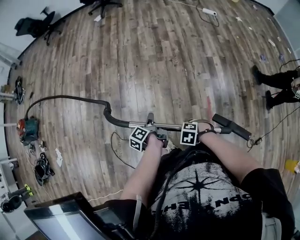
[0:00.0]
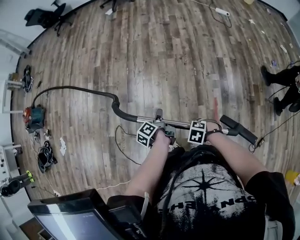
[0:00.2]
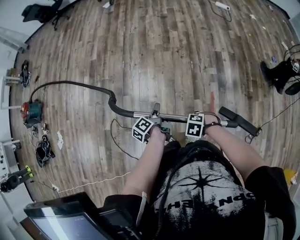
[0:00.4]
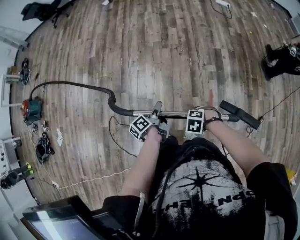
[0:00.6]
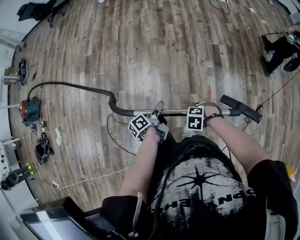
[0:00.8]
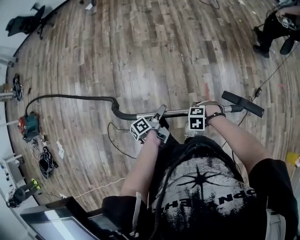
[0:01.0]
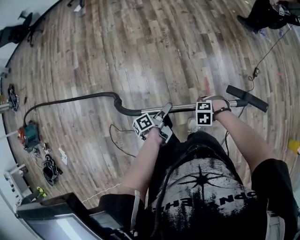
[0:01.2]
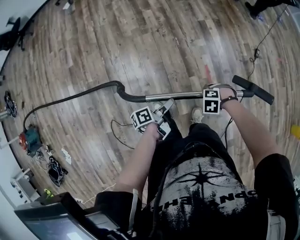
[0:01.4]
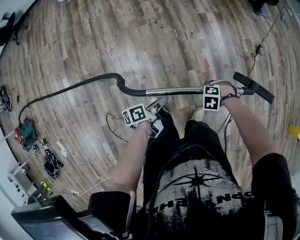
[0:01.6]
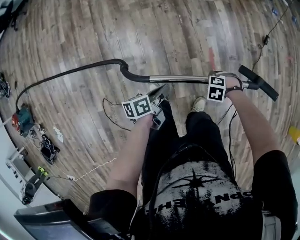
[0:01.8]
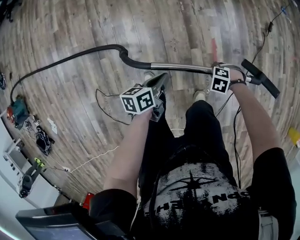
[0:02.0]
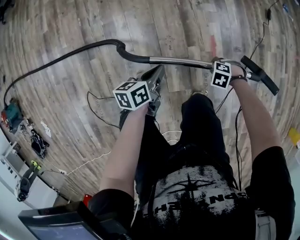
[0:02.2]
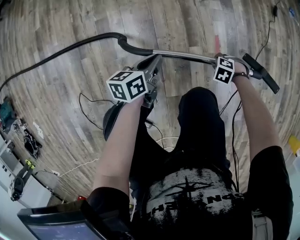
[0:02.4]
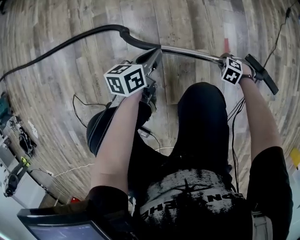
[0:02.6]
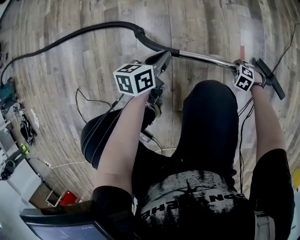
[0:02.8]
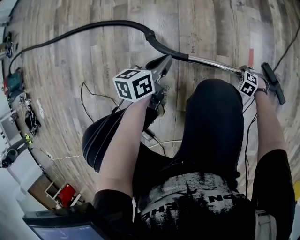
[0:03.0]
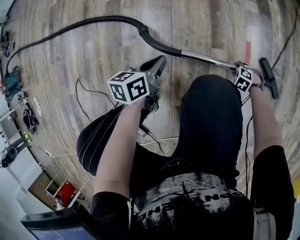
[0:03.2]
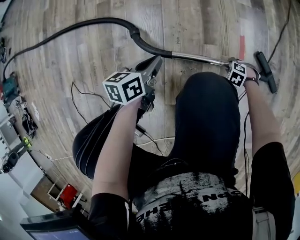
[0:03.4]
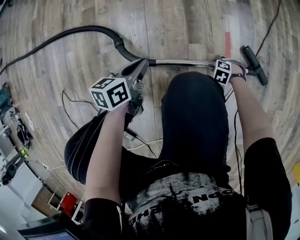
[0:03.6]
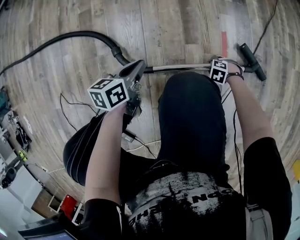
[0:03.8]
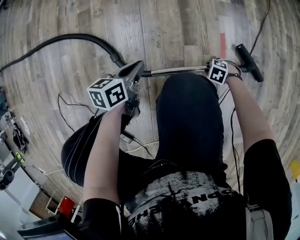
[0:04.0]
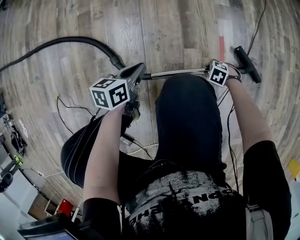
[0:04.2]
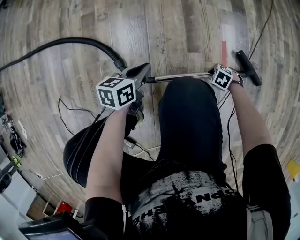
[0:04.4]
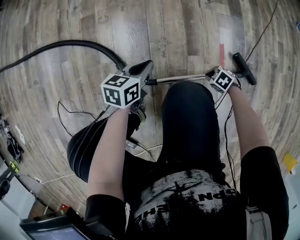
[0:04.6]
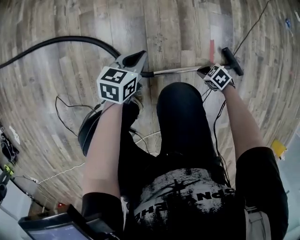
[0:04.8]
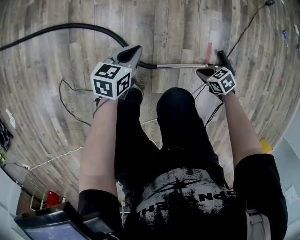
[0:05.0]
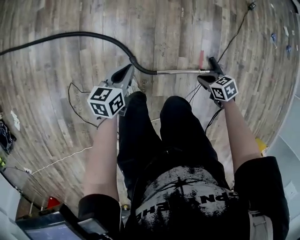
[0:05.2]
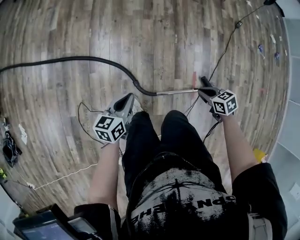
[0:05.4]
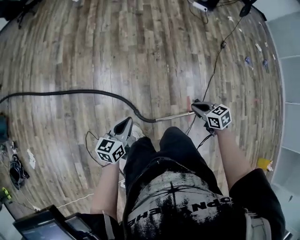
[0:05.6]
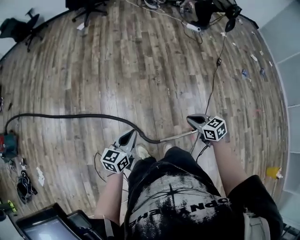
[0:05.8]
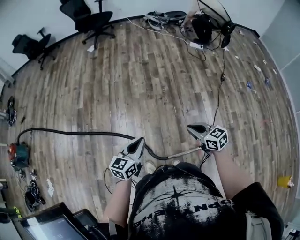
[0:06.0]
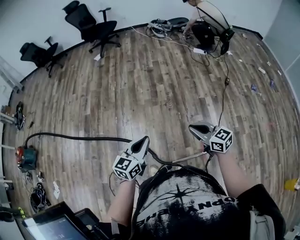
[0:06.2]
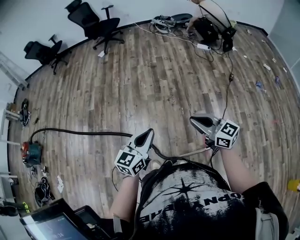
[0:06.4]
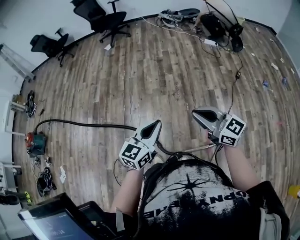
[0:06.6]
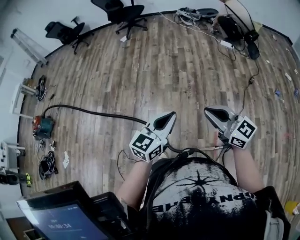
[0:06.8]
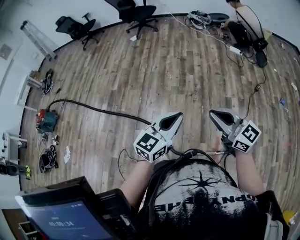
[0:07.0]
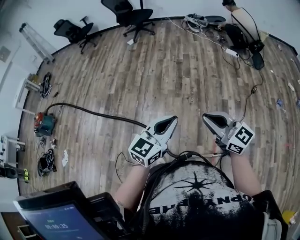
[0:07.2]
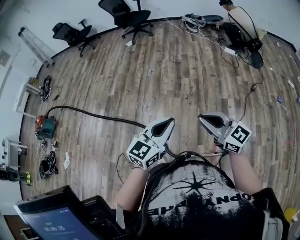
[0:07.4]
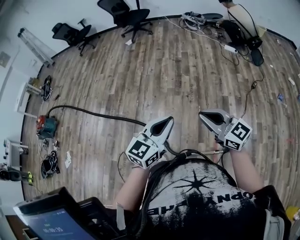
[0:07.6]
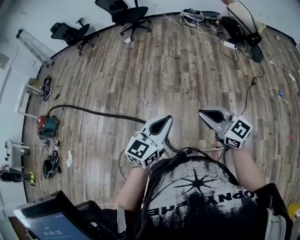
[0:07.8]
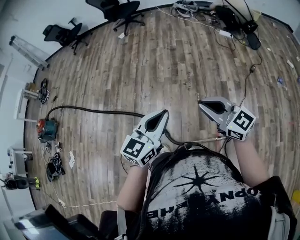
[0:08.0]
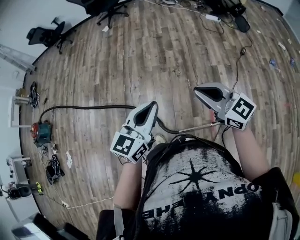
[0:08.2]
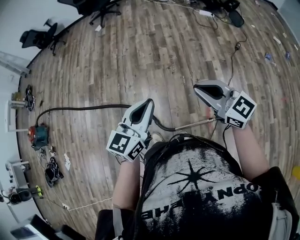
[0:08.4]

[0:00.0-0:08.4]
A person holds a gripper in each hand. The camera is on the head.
0:00.0 to 0:01.4: The left gripper ends up approximately 15 cm from where it was, and rotates some 50 degrees. Meanwhile the right gripper ends up some 20 cm from where it was.
0:01.4 to 0:02.8: Both grippers move downward, roughly 50 cm. The left gripper twists about 40 degrees clockwise, seen from behind, and closes up.
0:02.8 to 0:04.2: The right gripper changes place by roughly 10 cm; the left gripper ends up approximately 10 cm from where it was.
0:04.2 to 0:05.6: The grippers both shift upward by roughly 60 cm. The left gripper rotates about 20 degrees. Meanwhile the right gripper rotates some 60 degrees, and closes.
0:05.6 to 0:07.0: The right gripper goes approximately 30 cm upward, and tilts its fingers roughly 50 degrees upward, while the left gripper travels upward and to the right by some 35 cm, and turns by roughly 30 degrees.
0:07.0 to 0:08.4: The right gripper moves roughly 5 cm.

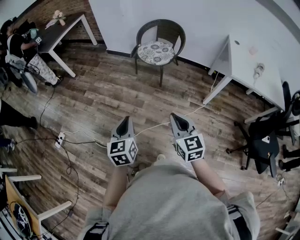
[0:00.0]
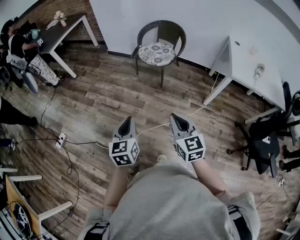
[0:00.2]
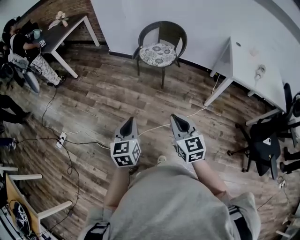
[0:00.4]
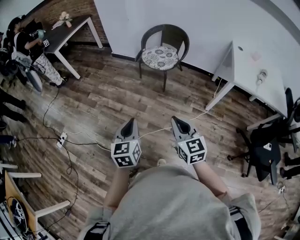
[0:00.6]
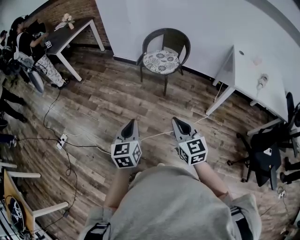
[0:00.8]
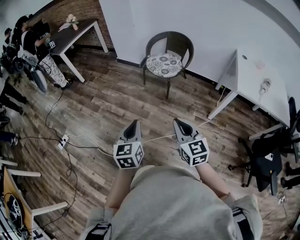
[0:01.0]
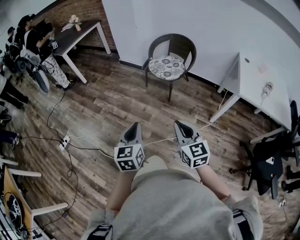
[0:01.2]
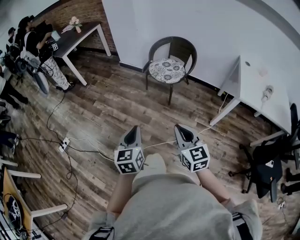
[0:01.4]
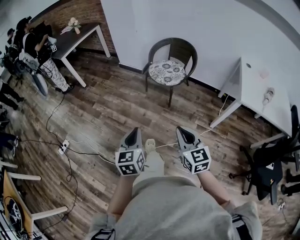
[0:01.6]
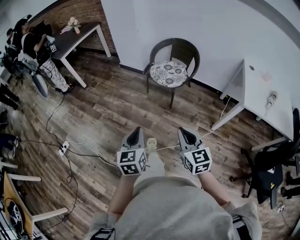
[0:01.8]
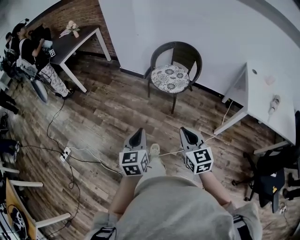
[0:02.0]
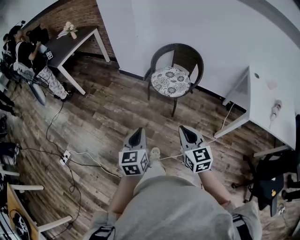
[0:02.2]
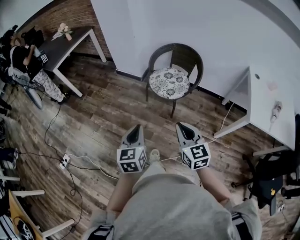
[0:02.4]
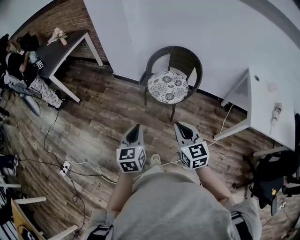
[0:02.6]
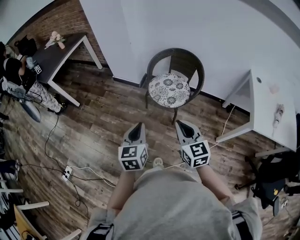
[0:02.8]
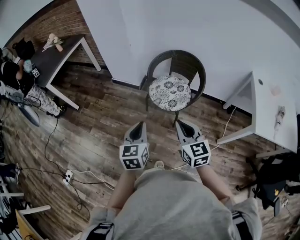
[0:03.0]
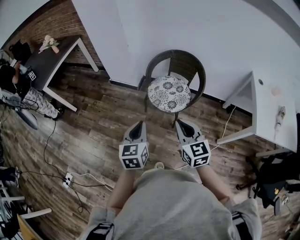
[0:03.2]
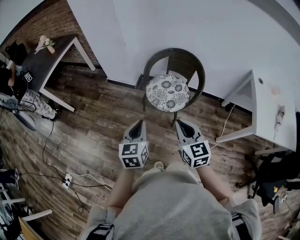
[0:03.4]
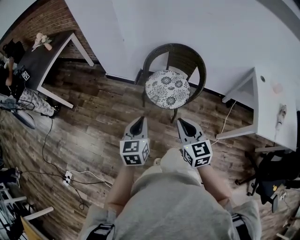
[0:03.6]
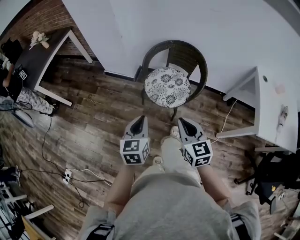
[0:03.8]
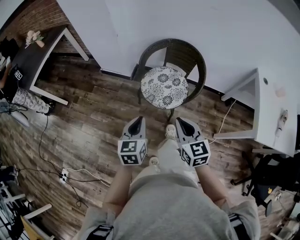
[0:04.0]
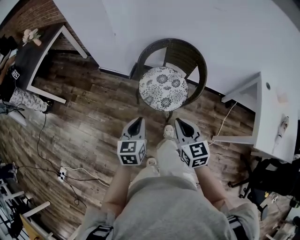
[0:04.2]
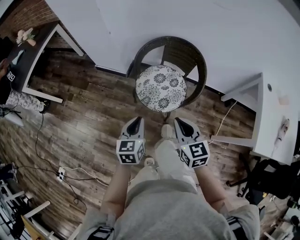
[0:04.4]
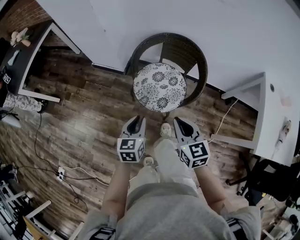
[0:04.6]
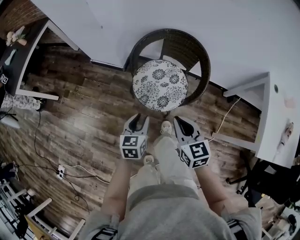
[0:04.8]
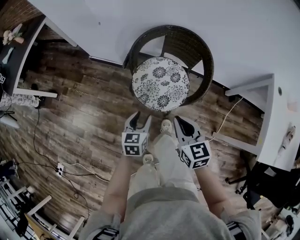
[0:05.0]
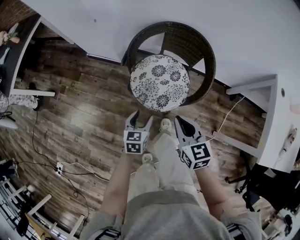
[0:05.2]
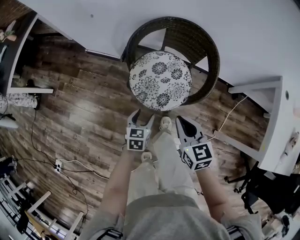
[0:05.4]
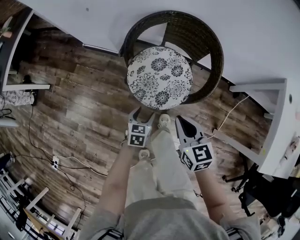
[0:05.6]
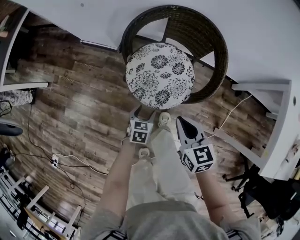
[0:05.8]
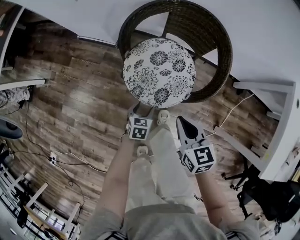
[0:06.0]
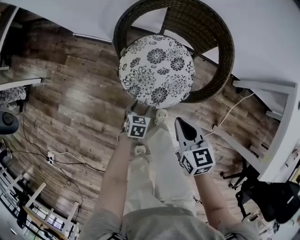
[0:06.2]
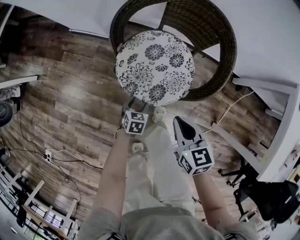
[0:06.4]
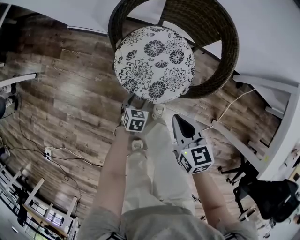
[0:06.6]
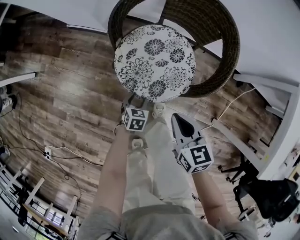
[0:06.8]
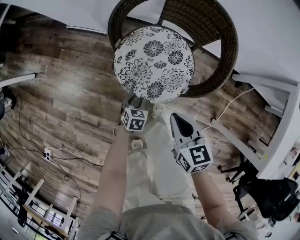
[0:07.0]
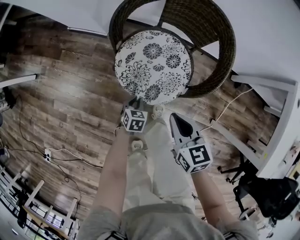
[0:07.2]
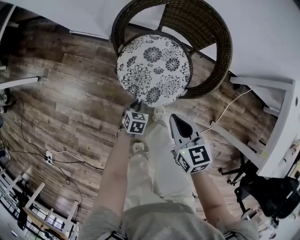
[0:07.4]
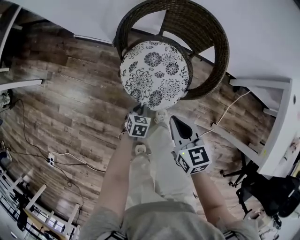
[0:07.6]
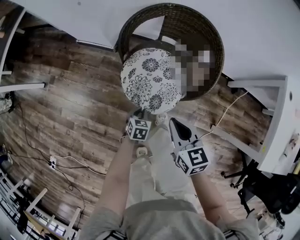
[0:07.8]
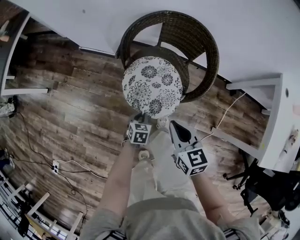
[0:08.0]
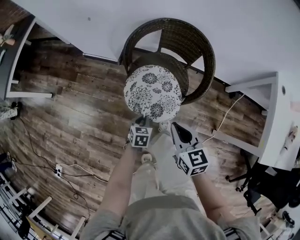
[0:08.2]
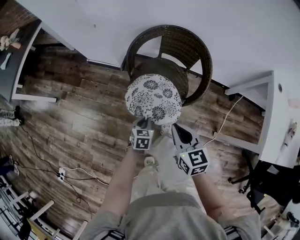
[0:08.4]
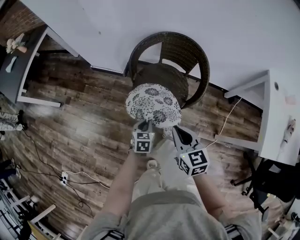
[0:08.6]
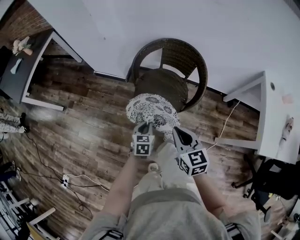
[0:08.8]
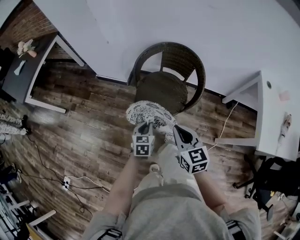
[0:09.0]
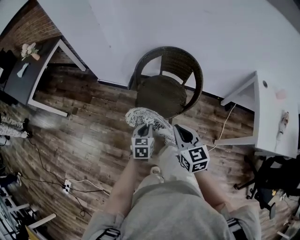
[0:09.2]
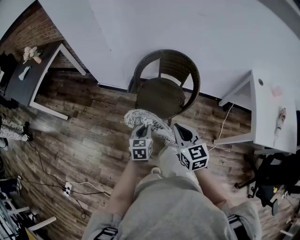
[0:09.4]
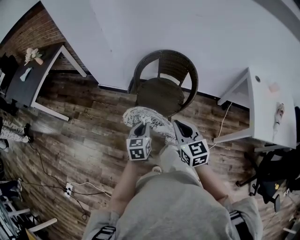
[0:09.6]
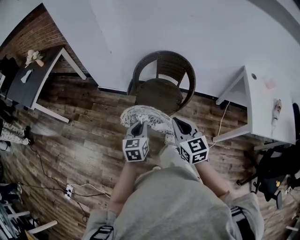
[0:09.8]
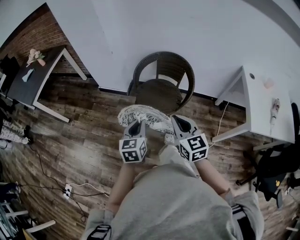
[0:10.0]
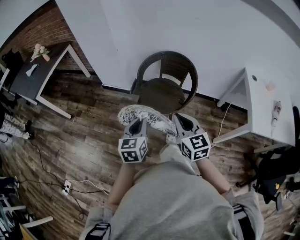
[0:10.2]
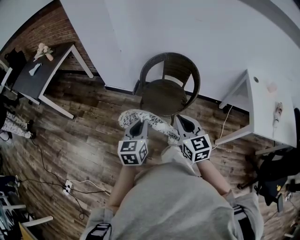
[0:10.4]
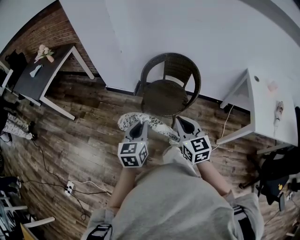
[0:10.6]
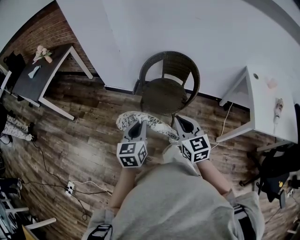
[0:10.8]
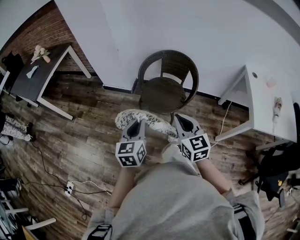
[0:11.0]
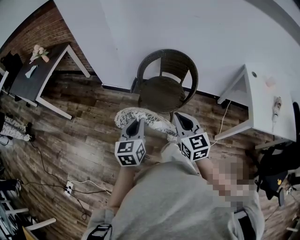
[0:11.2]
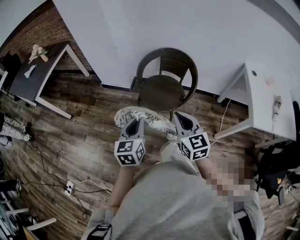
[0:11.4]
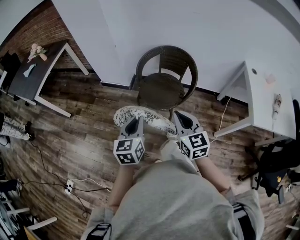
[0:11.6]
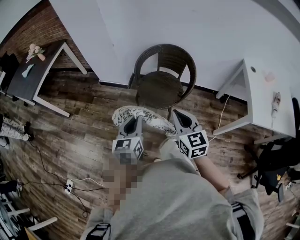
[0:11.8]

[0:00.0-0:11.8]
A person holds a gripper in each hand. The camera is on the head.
0:00.0 to 0:01.4: The grippers stay close to where they were, moving slightly.
0:01.4 to 0:03.0: The grippers both shift forward by some 40 cm.
0:03.0 to 0:04.4: The two grippers go some 20 cm forward and downward.
0:04.4 to 0:06.0: The right gripper is displaced downward and forward by about 25 cm, while the left gripper travels downward by roughly 35 cm, swivels about 30 degrees, and opens its fingers.
0:06.0 to 0:07.4: The left gripper closes.
0:07.4 to 0:08.8: The right gripper travels upward and backward by about 20 cm. Meanwhile the left gripper goes about 25 cm upward.
0:08.8 to 0:10.4: The right gripper heads backward and upward, covering some 20 cm, while the left gripper is displaced upward and backward by approximately 30 cm, and swivels about 30 degrees.
0:10.4 to 0:11.8: Both grippers stay about where they are.

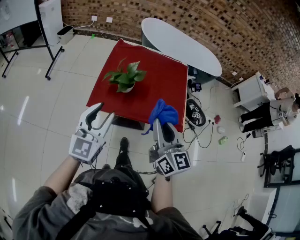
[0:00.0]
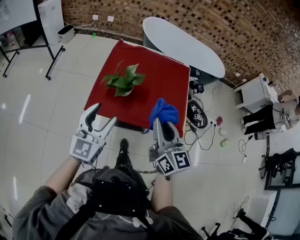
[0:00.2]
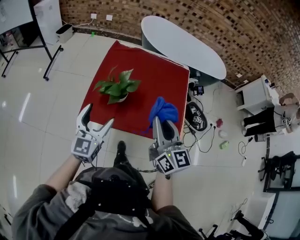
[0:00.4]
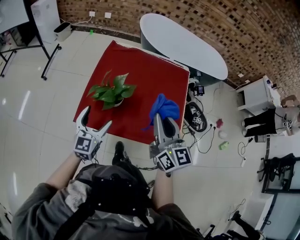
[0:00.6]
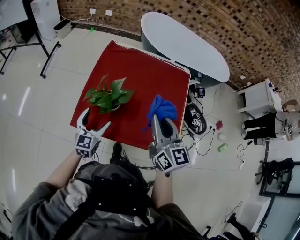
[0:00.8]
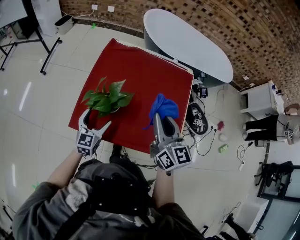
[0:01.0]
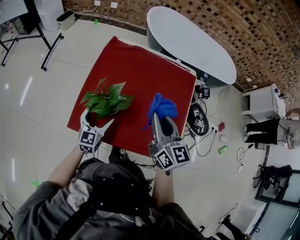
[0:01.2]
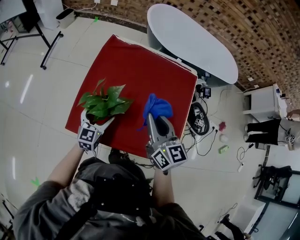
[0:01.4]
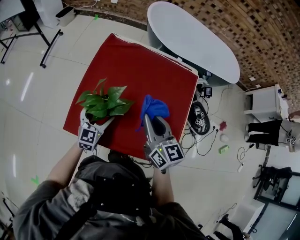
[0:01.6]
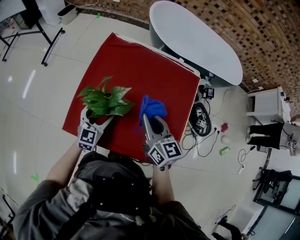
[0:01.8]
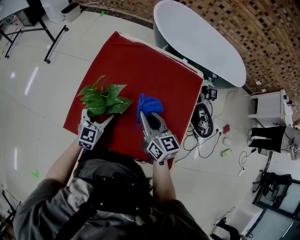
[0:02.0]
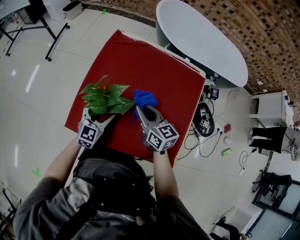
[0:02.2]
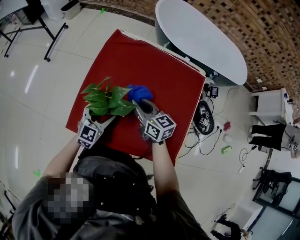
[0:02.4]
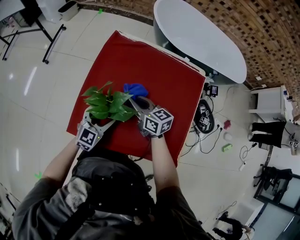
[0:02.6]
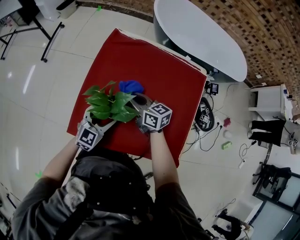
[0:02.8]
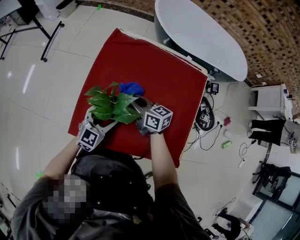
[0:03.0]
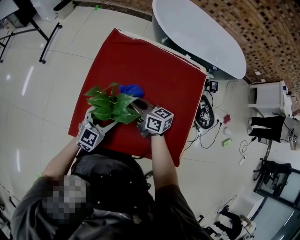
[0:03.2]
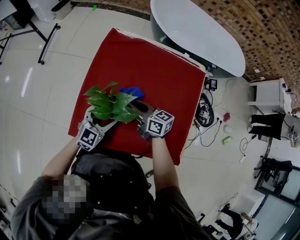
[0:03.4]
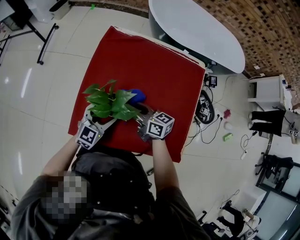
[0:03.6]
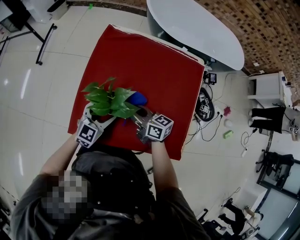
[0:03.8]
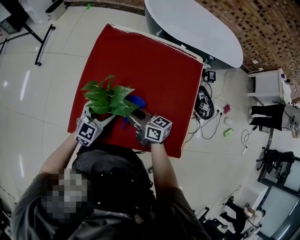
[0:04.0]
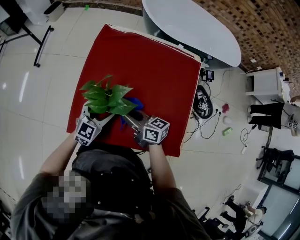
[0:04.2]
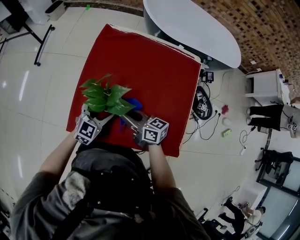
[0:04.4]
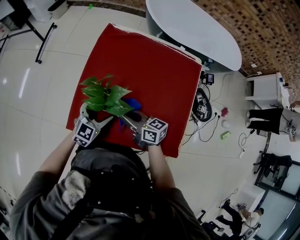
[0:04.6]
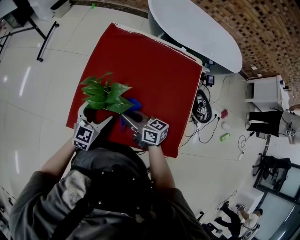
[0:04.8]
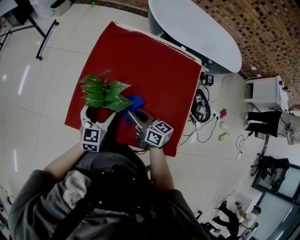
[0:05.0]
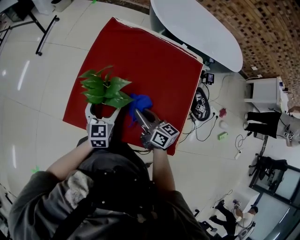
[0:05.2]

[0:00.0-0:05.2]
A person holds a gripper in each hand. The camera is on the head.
0:00.0 to 0:01.8: Both grippers travel together forward and downward, approximately 40 cm. The left gripper rotates approximately 20 degrees, and opens. Meanwhile the right gripper turns by about 20 degrees.
0:01.8 to 0:03.4: The right gripper goes approximately 15 cm to the left, downward and forward, and rotates some 30 degrees.
0:03.4 to 0:05.2: The right gripper heads backward and to the right, covering some 10 cm. Meanwhile the left gripper changes its angle by some 30 degrees.
